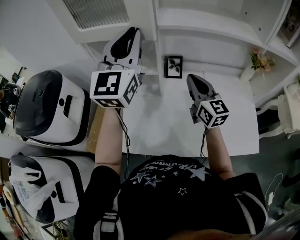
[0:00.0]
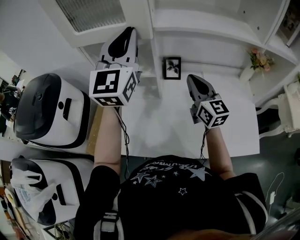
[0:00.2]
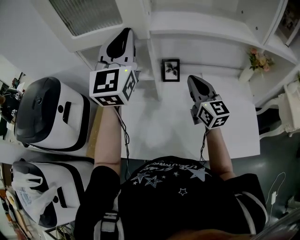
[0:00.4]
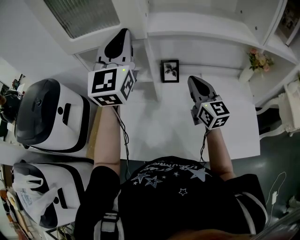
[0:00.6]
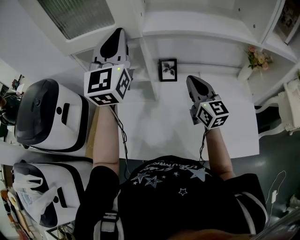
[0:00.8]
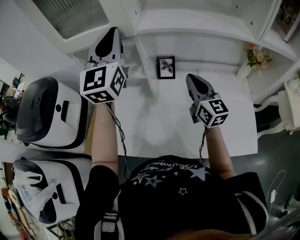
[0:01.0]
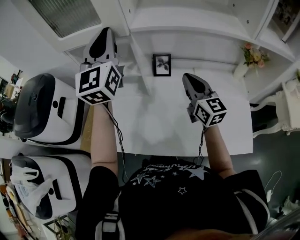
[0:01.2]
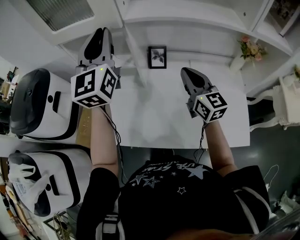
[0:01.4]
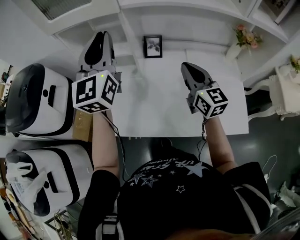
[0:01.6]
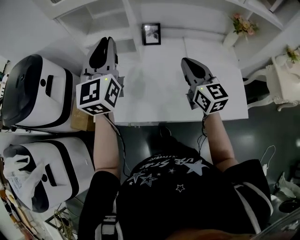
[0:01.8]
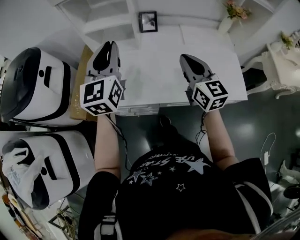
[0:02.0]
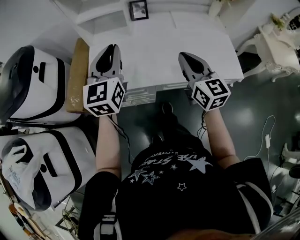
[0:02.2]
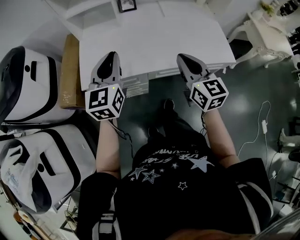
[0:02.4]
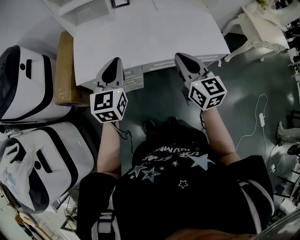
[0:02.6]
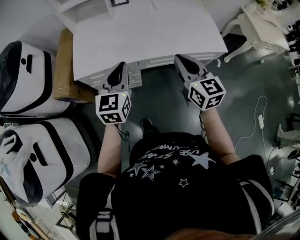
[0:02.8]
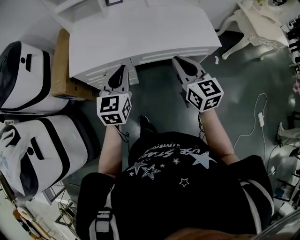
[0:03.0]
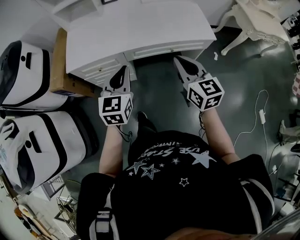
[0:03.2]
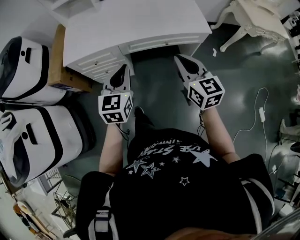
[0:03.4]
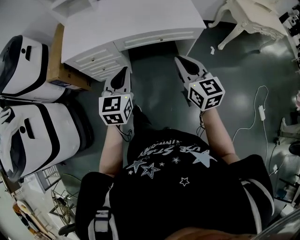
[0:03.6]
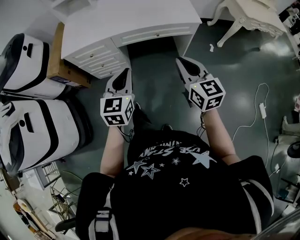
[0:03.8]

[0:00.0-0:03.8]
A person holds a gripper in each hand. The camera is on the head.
0:00.0 to 0:01.2: The right gripper is displaced to the right by roughly 5 cm.
0:01.2 to 0:02.6: The right gripper moves backward, some 40 cm; the left gripper is displaced backward and downward by approximately 50 cm, and rotates some 30 degrees.
0:02.6 to 0:03.8: The two grippers go roughly 35 cm backward and to the right.

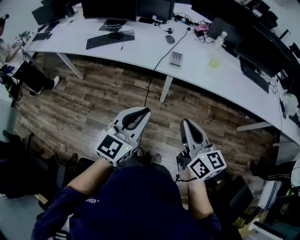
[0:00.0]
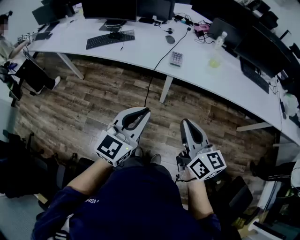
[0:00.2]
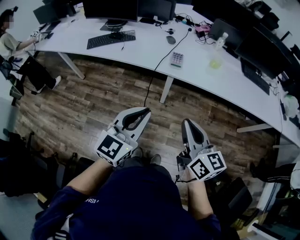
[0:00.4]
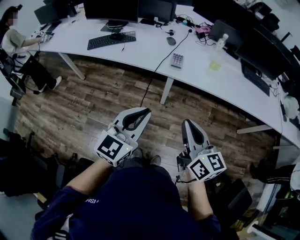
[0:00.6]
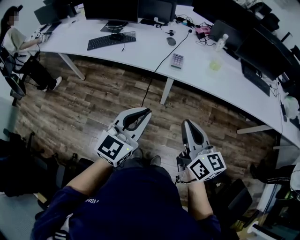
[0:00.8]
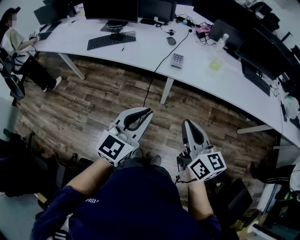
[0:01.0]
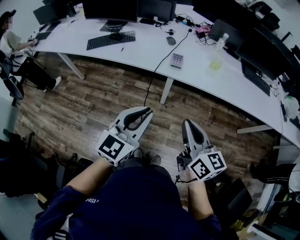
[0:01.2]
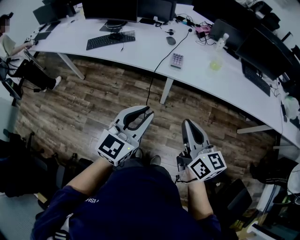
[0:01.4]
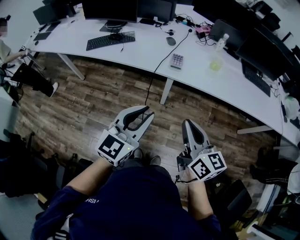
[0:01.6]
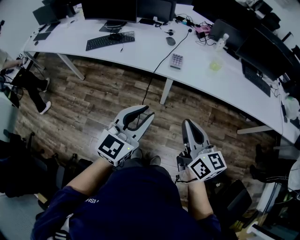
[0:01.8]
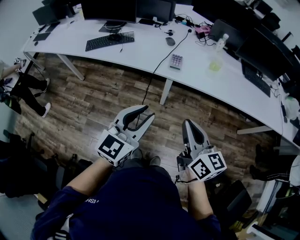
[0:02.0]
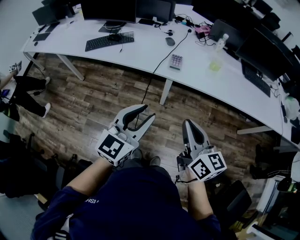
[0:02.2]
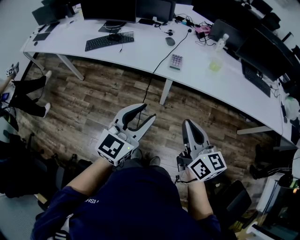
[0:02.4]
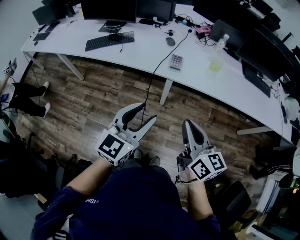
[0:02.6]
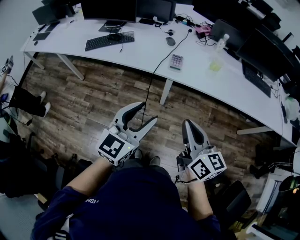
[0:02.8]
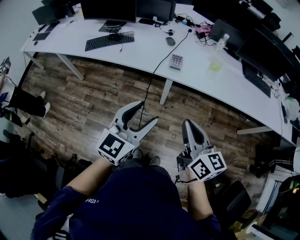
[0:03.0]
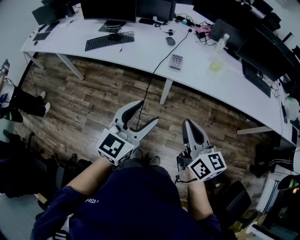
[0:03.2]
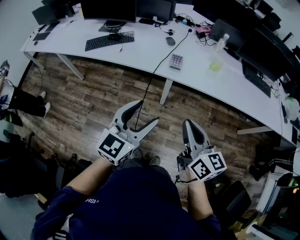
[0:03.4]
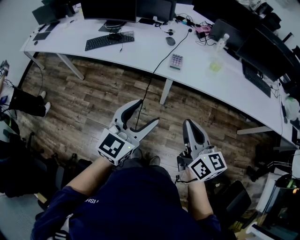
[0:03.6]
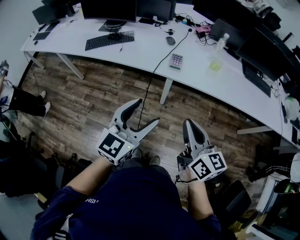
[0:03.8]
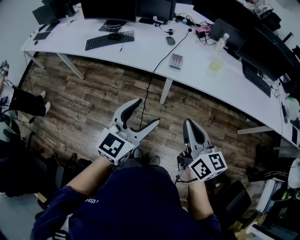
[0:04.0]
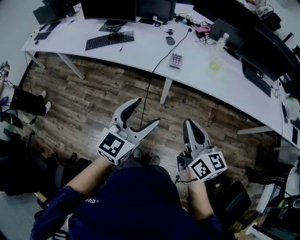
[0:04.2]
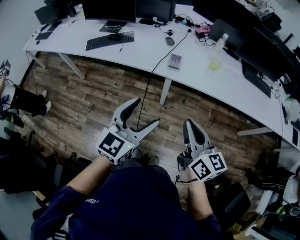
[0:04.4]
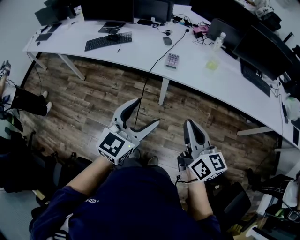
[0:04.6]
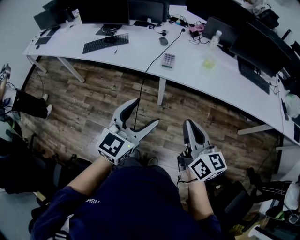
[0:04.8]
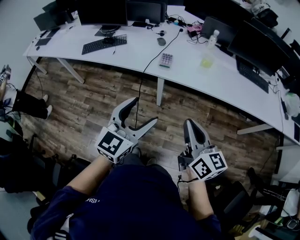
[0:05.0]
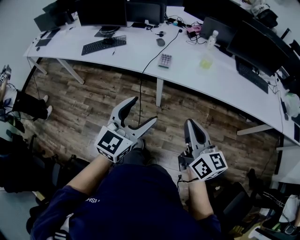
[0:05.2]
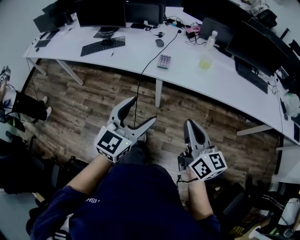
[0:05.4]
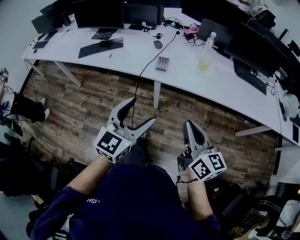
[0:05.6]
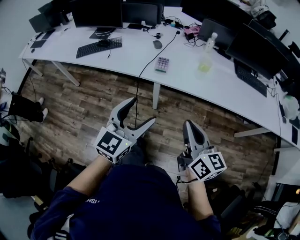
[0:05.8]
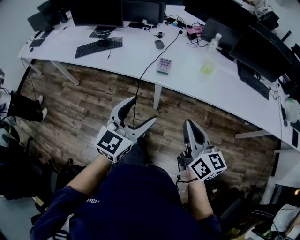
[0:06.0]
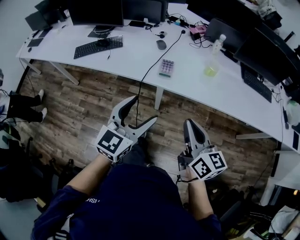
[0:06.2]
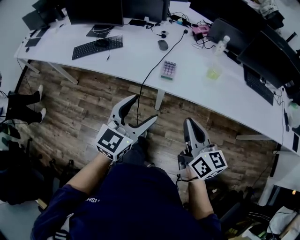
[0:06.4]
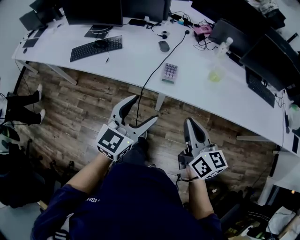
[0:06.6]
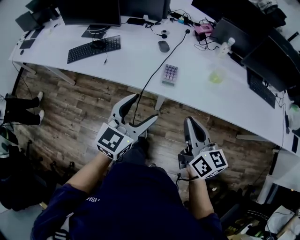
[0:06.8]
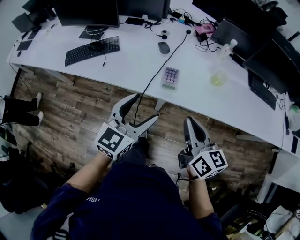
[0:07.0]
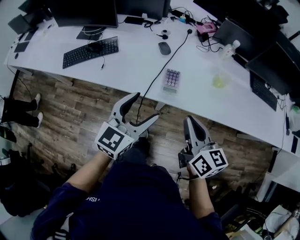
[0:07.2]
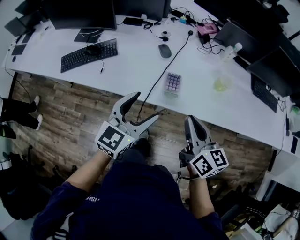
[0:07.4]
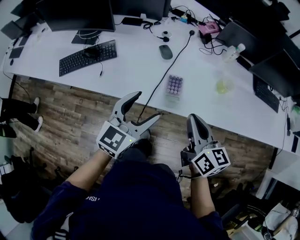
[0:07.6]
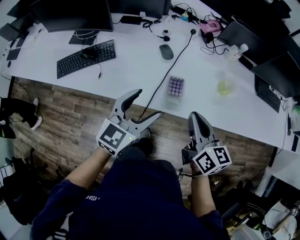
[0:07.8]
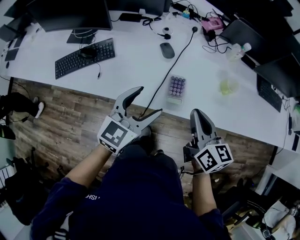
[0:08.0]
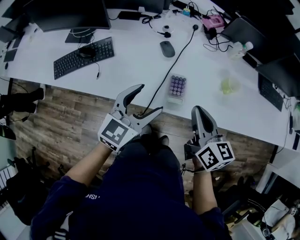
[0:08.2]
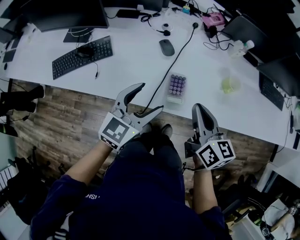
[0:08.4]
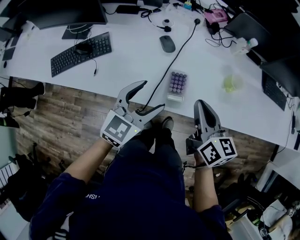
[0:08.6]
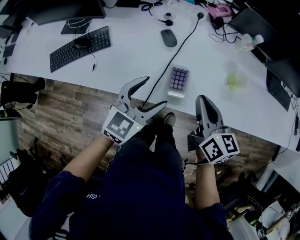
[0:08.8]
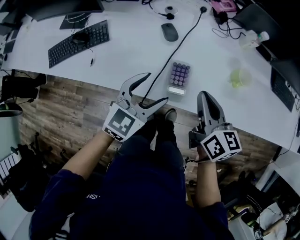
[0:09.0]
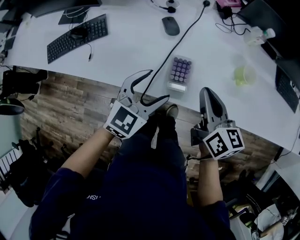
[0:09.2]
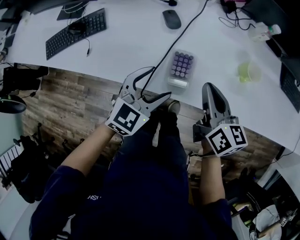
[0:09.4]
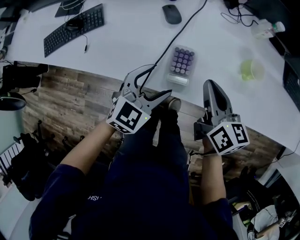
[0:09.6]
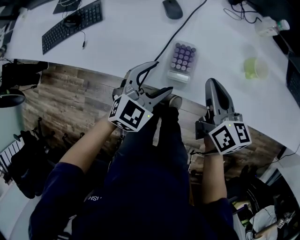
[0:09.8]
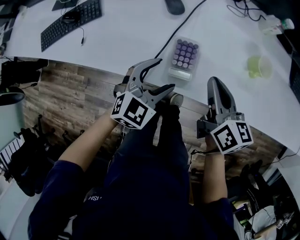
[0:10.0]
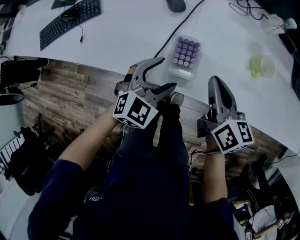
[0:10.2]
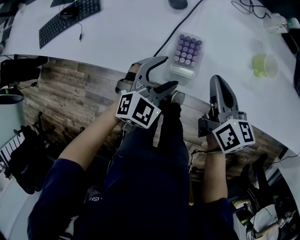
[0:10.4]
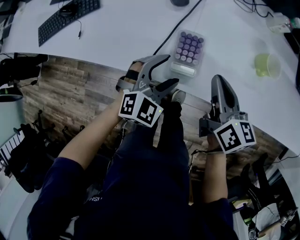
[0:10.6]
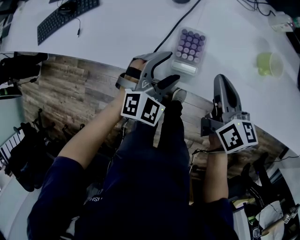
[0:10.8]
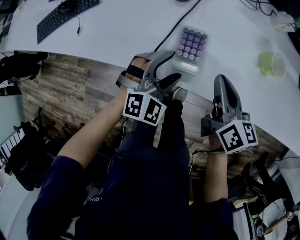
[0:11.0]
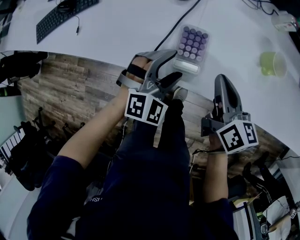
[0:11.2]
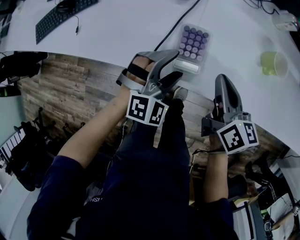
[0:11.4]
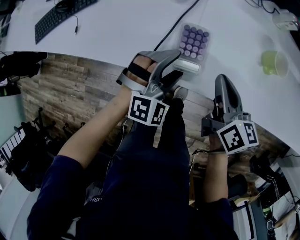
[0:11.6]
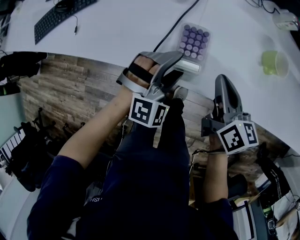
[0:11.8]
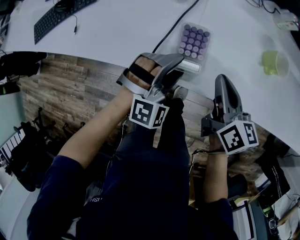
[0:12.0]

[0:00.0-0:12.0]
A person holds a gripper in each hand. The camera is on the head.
0:00.0 to 0:01.6: The grippers make only small movements.
0:01.6 to 0:03.0: The left gripper opens up.
0:03.0 to 0:04.4: The grippers move only a little.
0:04.4 to 0:06.0: The left gripper shifts about 5 cm forward. Meanwhile the right gripper goes roughly 10 cm forward and to the right.
0:06.0 to 0:07.6: The grippers both shift forward by about 25 cm.
0:07.6 to 0:09.0: The left gripper is displaced downward and forward by roughly 10 cm. The right gripper goes roughly 10 cm forward and downward.
0:09.0 to 0:10.4: The grippers both shift downward by approximately 10 cm. The left gripper turns by some 20 degrees.
0:10.4 to 0:12.0: The left gripper turns by about 30 degrees.

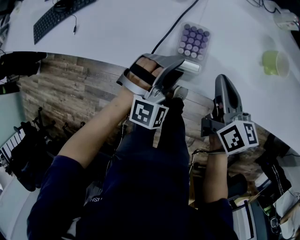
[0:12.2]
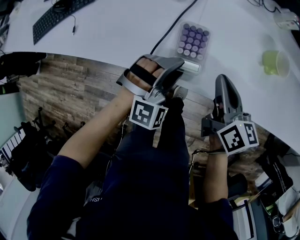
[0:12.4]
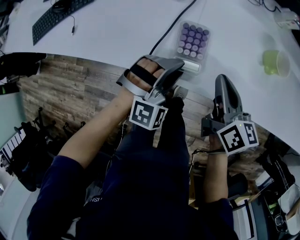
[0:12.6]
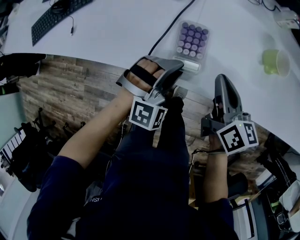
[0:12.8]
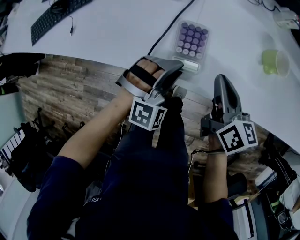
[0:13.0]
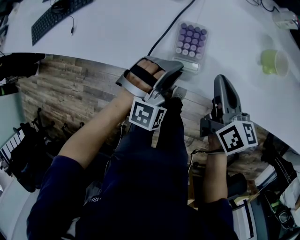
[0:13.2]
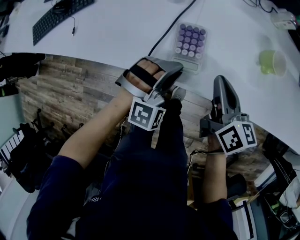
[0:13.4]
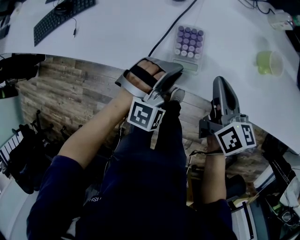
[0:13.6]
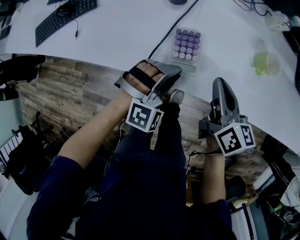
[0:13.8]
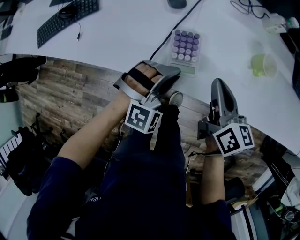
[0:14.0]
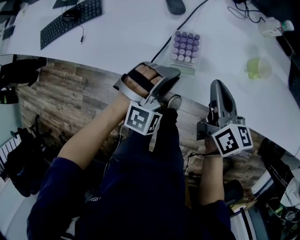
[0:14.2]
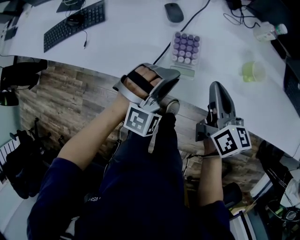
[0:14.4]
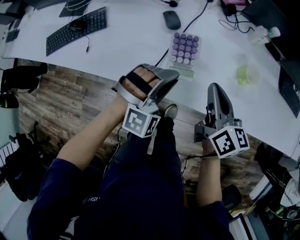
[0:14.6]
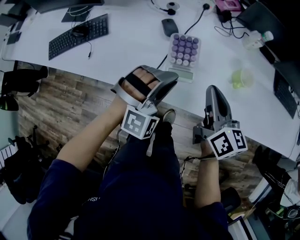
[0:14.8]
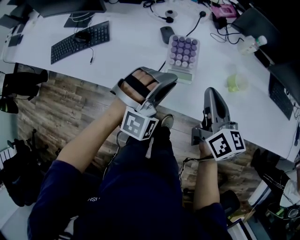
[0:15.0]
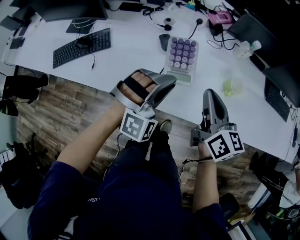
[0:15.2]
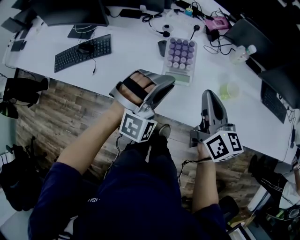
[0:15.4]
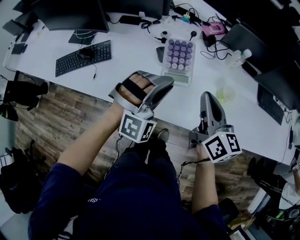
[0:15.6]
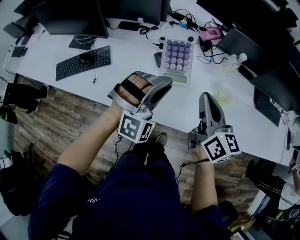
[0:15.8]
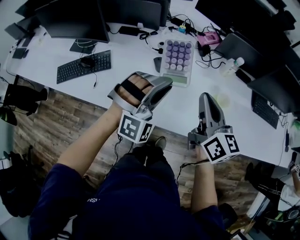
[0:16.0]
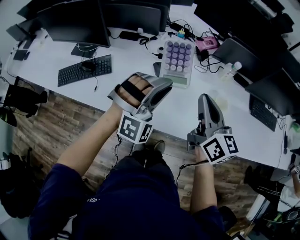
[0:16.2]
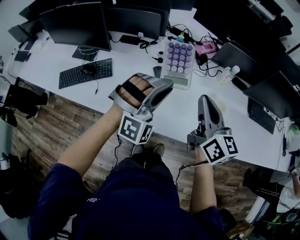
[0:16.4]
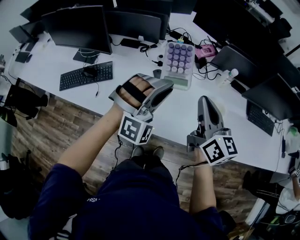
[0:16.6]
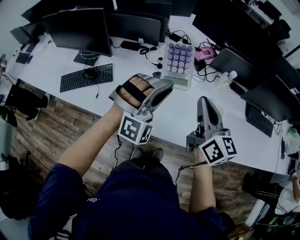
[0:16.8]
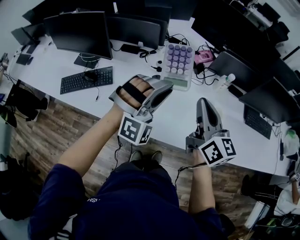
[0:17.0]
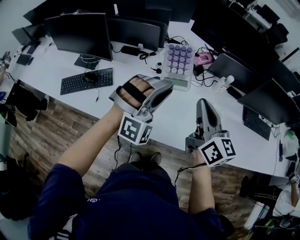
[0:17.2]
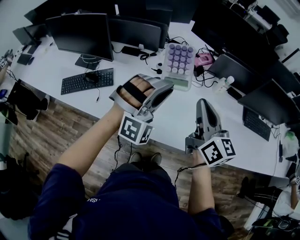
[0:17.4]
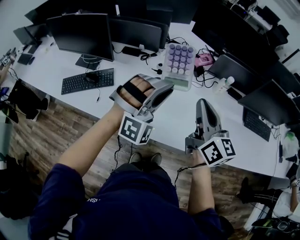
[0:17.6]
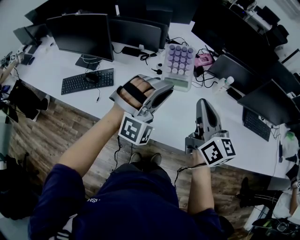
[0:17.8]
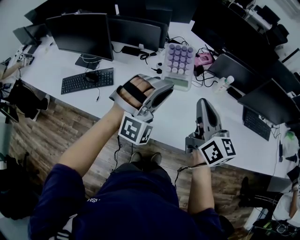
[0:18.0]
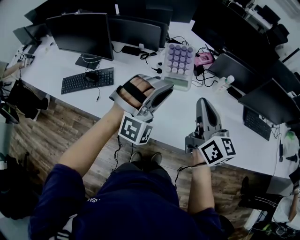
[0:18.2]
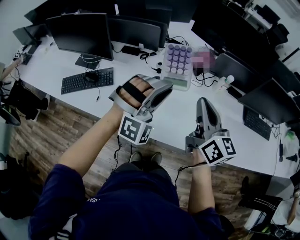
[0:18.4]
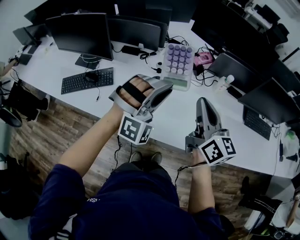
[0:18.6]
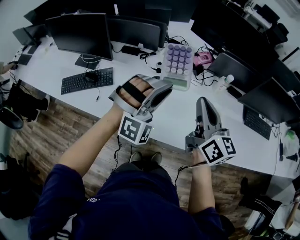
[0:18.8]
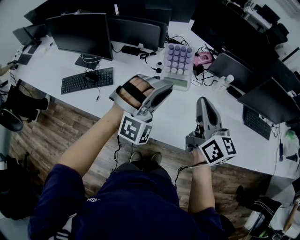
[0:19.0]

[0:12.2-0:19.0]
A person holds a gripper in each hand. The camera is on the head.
0:12.2 to 0:13.6: The left gripper closes.
0:13.6 to 0:15.0: The two grippers go about 15 cm upward.
0:15.0 to 0:16.2: The grippers both shift upward by roughly 10 cm.
0:16.2 to 0:17.6: The left gripper travels upward by some 5 cm.
0:17.6 to 0:19.0: Both grippers stay put.

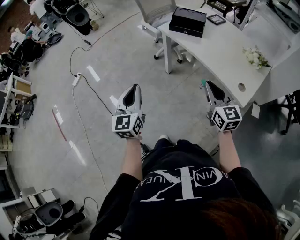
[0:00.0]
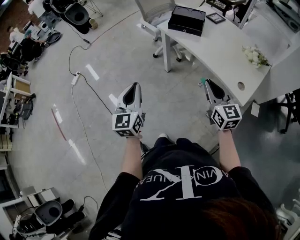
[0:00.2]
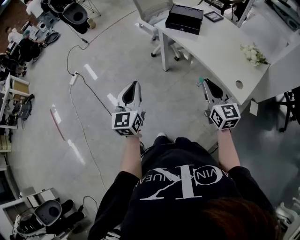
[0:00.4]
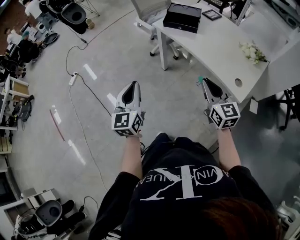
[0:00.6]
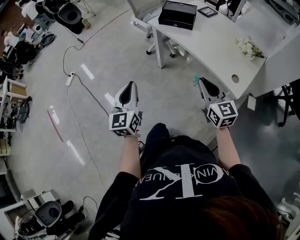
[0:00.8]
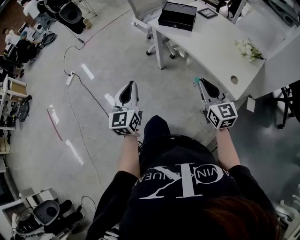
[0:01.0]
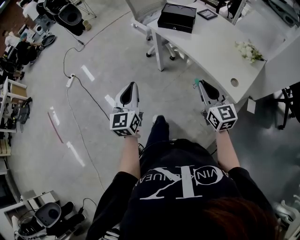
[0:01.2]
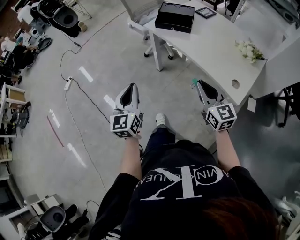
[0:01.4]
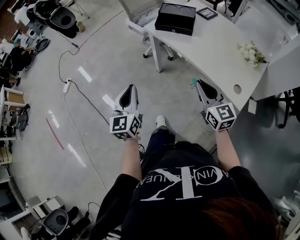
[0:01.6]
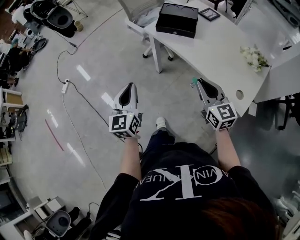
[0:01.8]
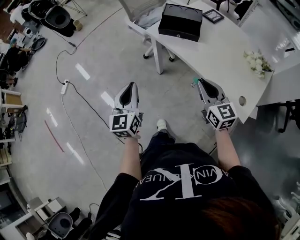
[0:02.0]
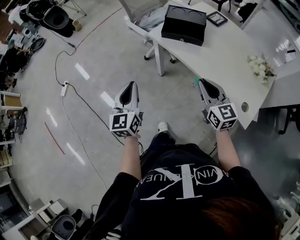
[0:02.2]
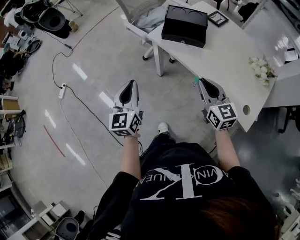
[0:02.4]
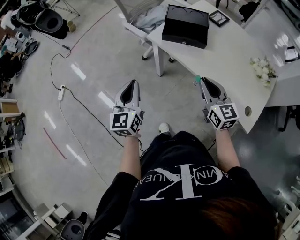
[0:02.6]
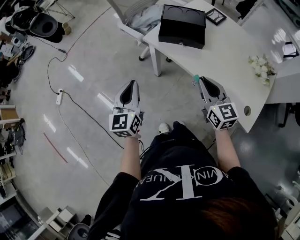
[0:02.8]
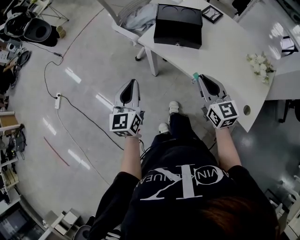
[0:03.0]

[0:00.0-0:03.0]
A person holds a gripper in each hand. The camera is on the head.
0:00.0 to 0:01.6: Both grippers travel together forward, approximately 5 cm.
0:01.6 to 0:03.0: Both grippers travel together forward, about 20 cm.
